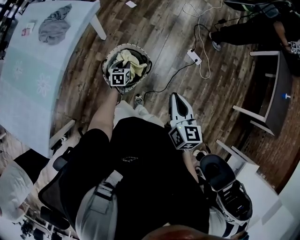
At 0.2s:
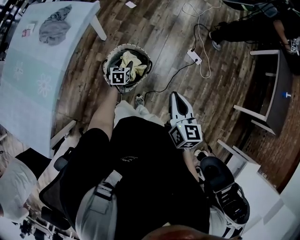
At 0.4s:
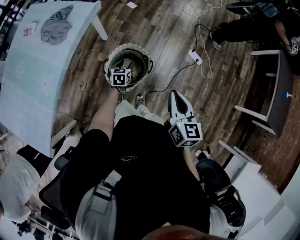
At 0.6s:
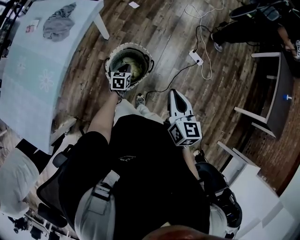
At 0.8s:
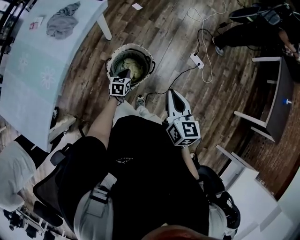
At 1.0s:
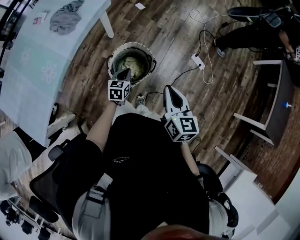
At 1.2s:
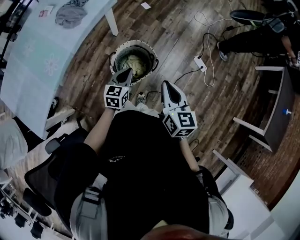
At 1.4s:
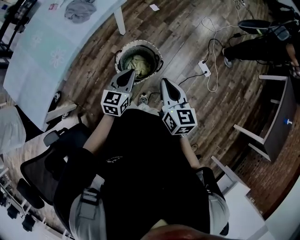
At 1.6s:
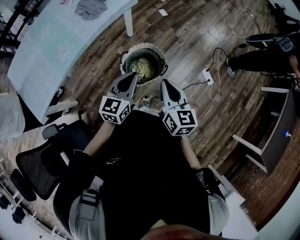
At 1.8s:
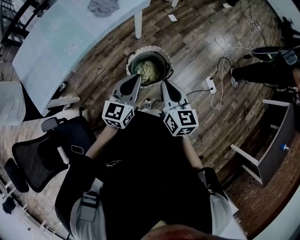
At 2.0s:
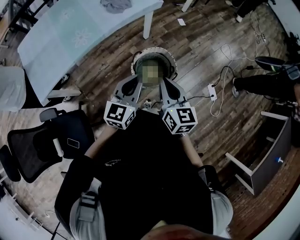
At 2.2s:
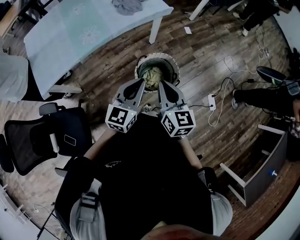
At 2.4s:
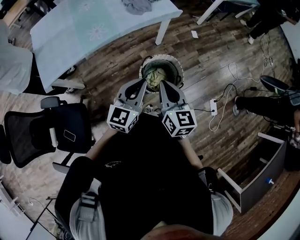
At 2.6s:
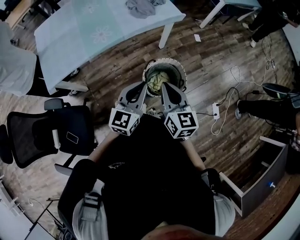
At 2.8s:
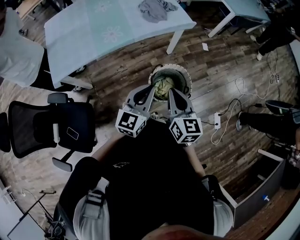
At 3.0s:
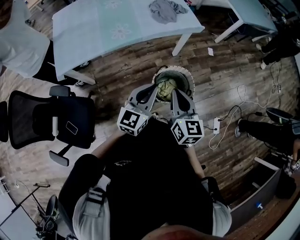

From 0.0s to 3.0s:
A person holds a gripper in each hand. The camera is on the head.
From 0.0s to 1.6s: The left gripper is displaced upward and backward by roughly 35 cm, points its fingers approximately 30 degrees further upward, and opens, then closes again. The right gripper shifts some 10 cm to the left, and rotates about 30 degrees.
From 1.6s to 3.0s: The left gripper is displaced to the left and upward by some 10 cm, and turns by approximately 30 degrees. The right gripper shifts about 15 cm to the left, and turns by approximately 30 degrees.

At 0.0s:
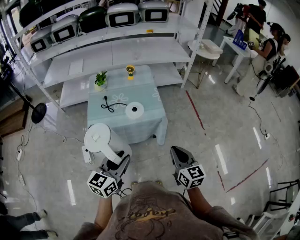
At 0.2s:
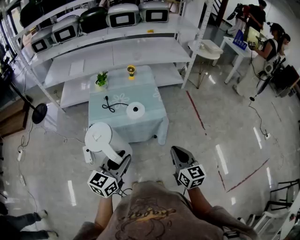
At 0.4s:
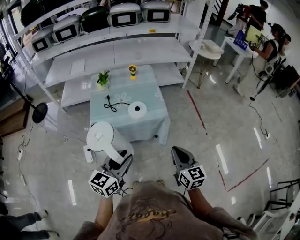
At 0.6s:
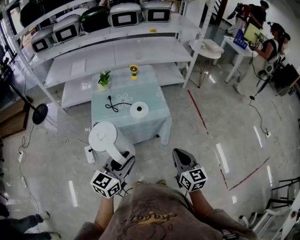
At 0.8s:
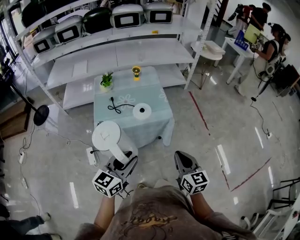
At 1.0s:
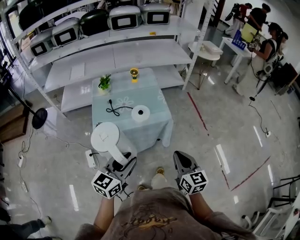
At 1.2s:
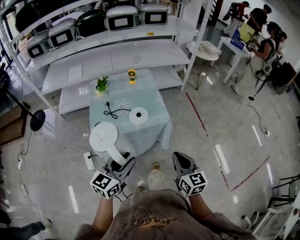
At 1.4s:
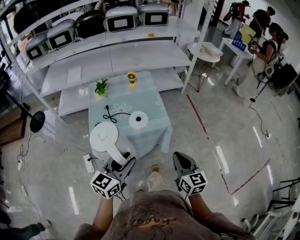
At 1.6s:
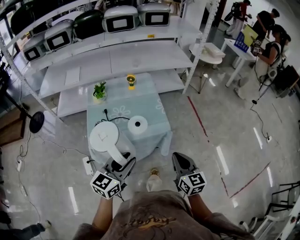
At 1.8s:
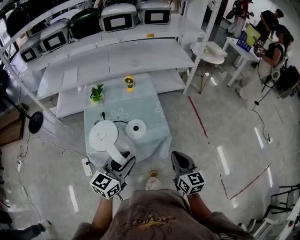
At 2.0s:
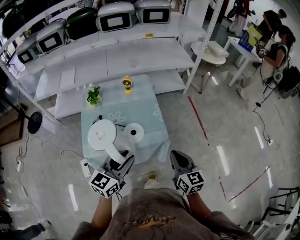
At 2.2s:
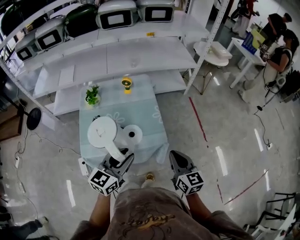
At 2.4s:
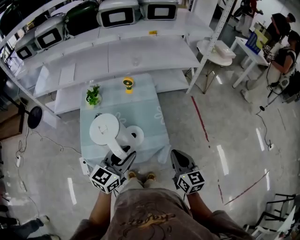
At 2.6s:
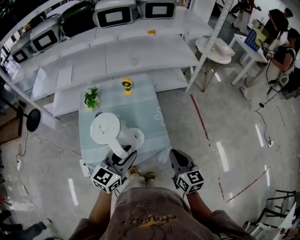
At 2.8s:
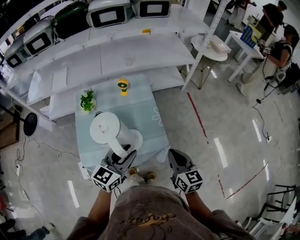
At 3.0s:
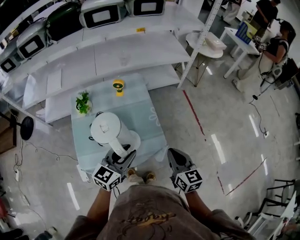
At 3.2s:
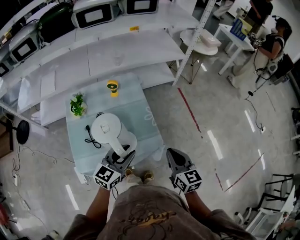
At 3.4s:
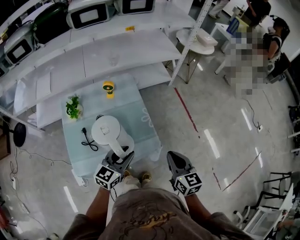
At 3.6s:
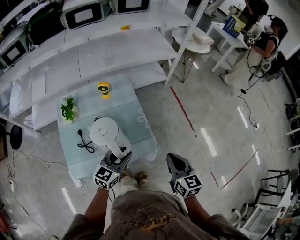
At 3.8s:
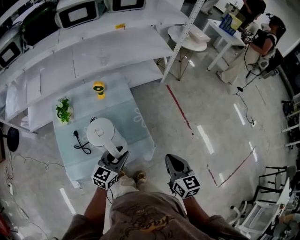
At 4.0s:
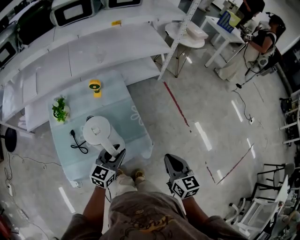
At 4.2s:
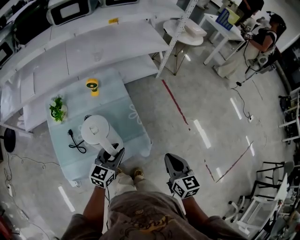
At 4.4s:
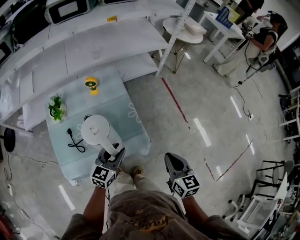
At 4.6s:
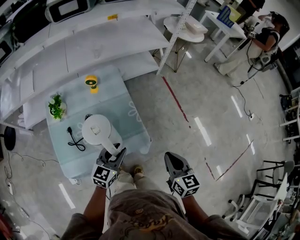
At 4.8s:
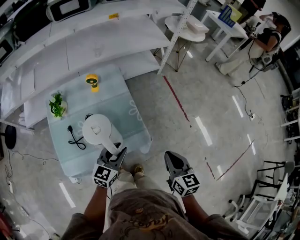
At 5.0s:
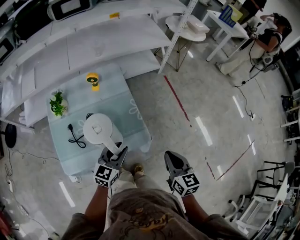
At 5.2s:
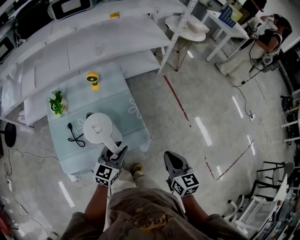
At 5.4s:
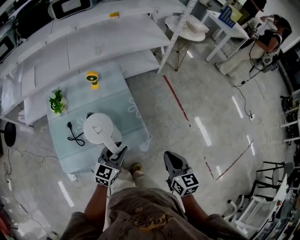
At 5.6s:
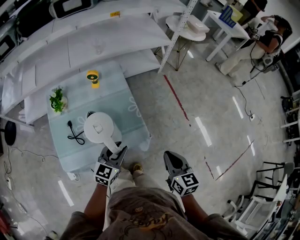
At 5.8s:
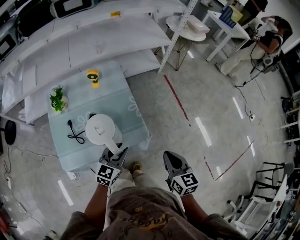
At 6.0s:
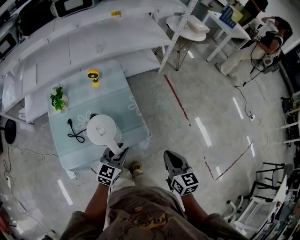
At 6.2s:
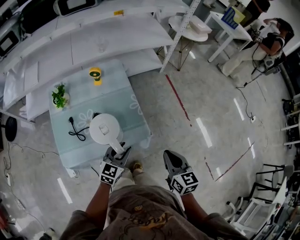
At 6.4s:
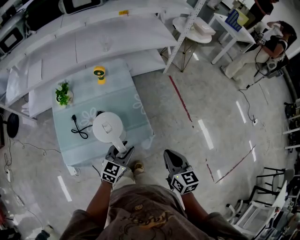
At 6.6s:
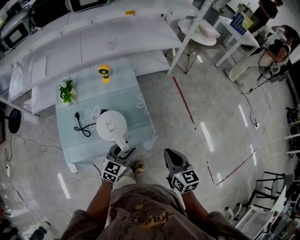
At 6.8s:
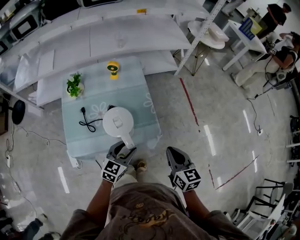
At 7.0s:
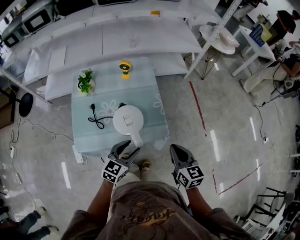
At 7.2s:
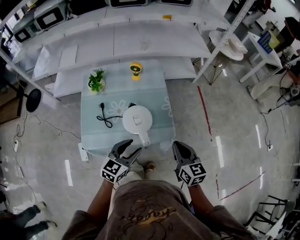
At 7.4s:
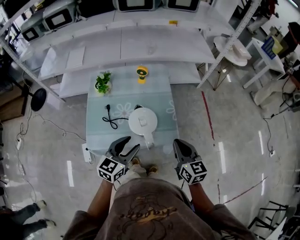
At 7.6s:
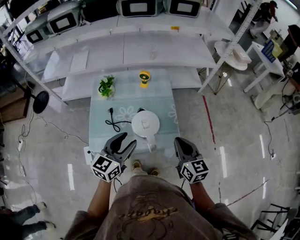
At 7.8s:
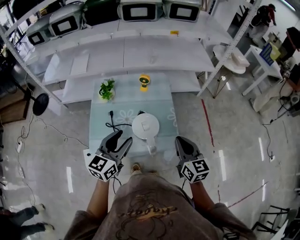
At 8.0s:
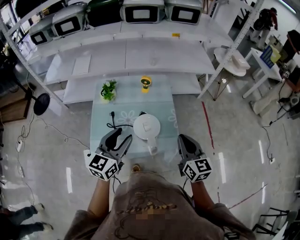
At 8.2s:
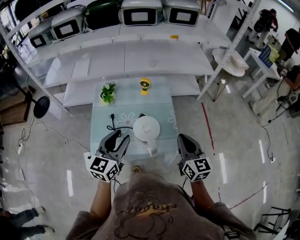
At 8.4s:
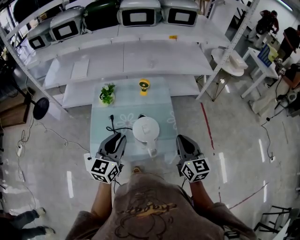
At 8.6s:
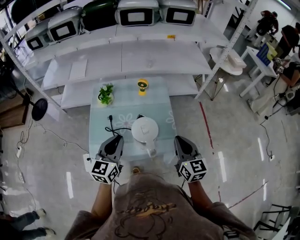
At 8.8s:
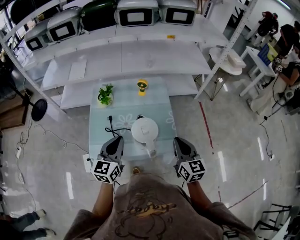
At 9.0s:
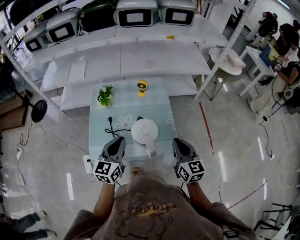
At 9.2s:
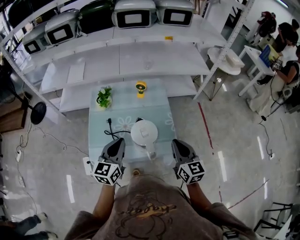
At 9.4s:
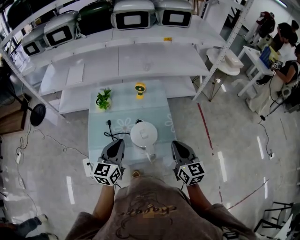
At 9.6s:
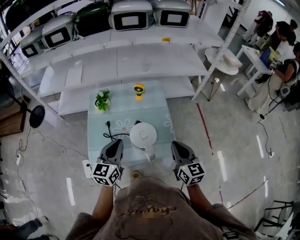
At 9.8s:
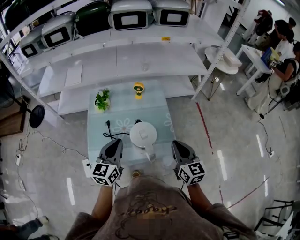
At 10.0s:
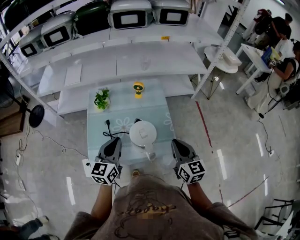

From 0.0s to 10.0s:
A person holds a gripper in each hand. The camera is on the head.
From 0.0s to 1.4s: The right gripper moves roughly 5 cm, while the left gripper travels forward by roughly 5 cm.
From 1.4s to 2.8s: The two grippers go approximately 25 cm forward.
From 2.8s to 4.2s: The left gripper is displaced downward and forward by roughly 15 cm; the right gripper shifts roughly 5 cm to the right.
From 4.2s to 5.8s: The left gripper ends up roughly 5 cm from where it was.
From 5.8s to 7.2s: The two grippers go roughly 10 cm to the left.
From 7.2s to 8.6s: The left gripper is displaced upward and to the left by roughly 15 cm, turns by some 30 degrees, and closes up. The right gripper travels upward by roughly 10 cm.
From 8.6s to 10.0s: There are only small adjustments of the grippers.

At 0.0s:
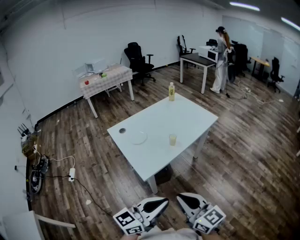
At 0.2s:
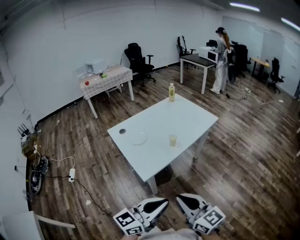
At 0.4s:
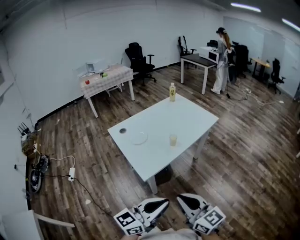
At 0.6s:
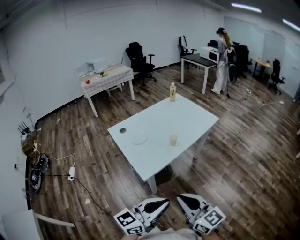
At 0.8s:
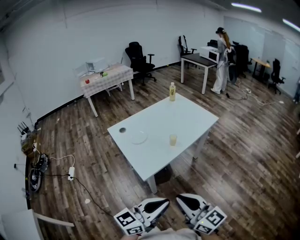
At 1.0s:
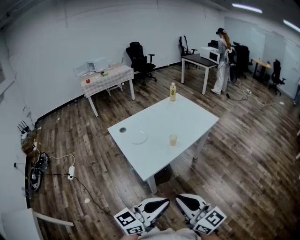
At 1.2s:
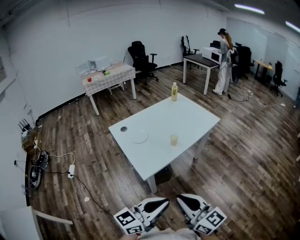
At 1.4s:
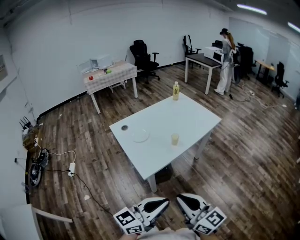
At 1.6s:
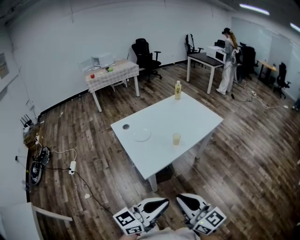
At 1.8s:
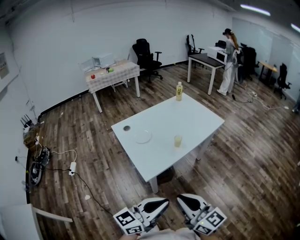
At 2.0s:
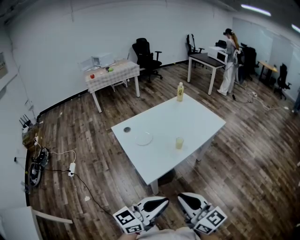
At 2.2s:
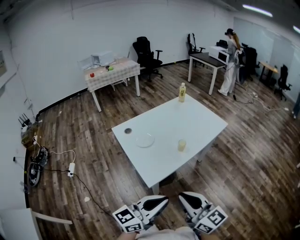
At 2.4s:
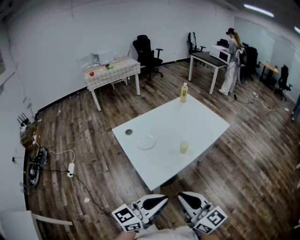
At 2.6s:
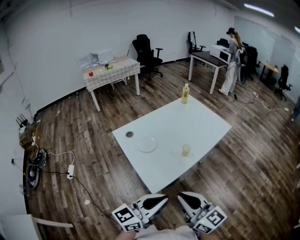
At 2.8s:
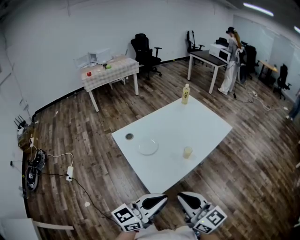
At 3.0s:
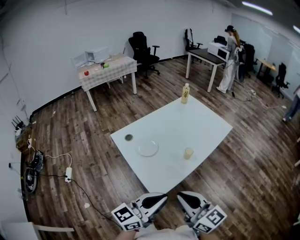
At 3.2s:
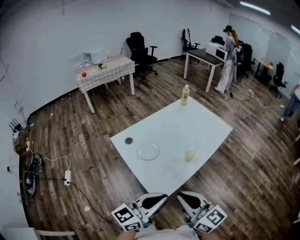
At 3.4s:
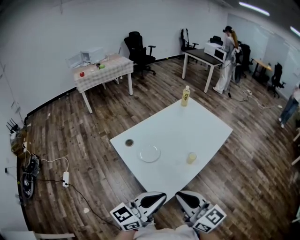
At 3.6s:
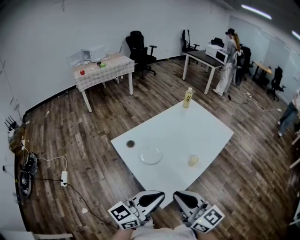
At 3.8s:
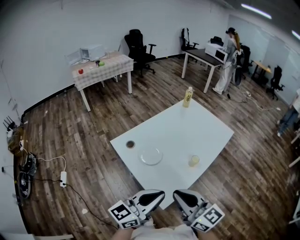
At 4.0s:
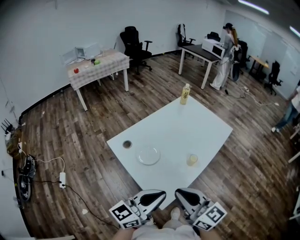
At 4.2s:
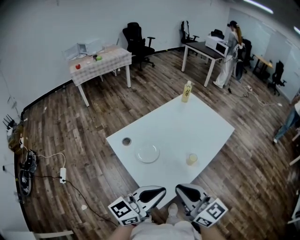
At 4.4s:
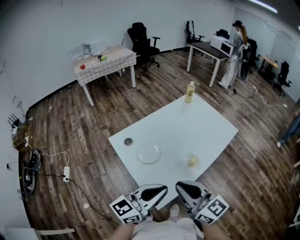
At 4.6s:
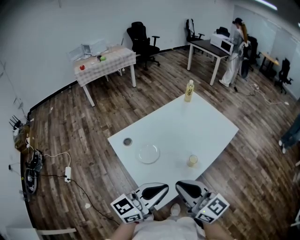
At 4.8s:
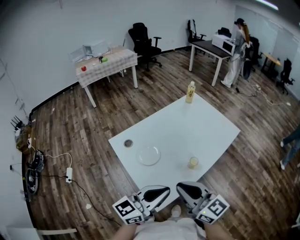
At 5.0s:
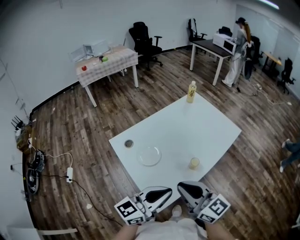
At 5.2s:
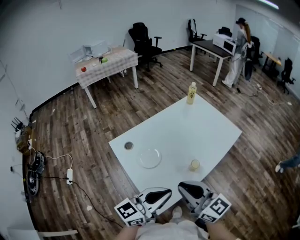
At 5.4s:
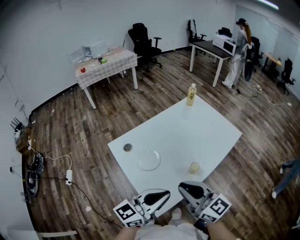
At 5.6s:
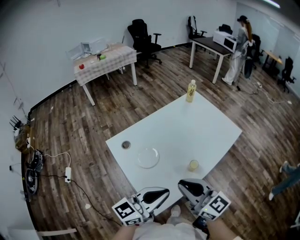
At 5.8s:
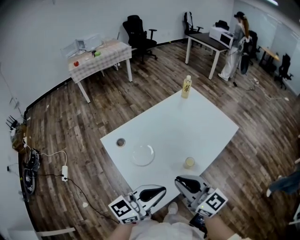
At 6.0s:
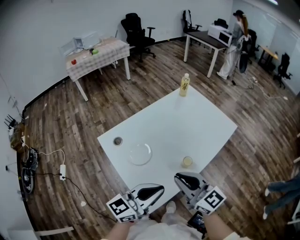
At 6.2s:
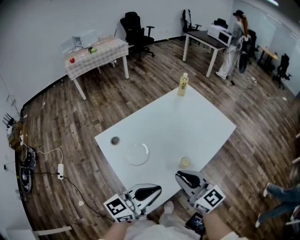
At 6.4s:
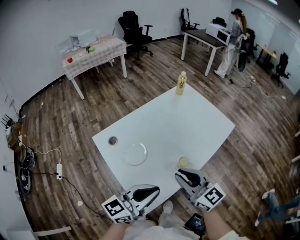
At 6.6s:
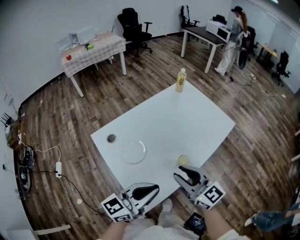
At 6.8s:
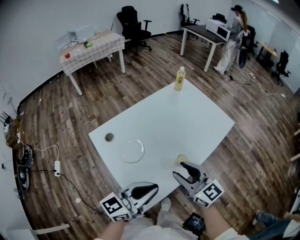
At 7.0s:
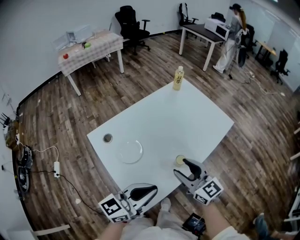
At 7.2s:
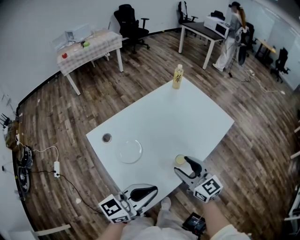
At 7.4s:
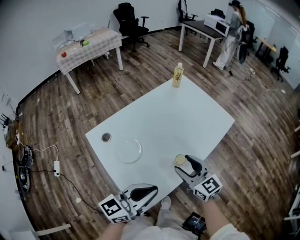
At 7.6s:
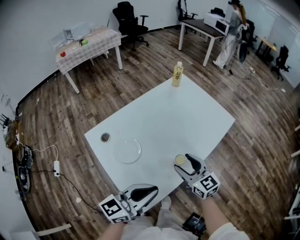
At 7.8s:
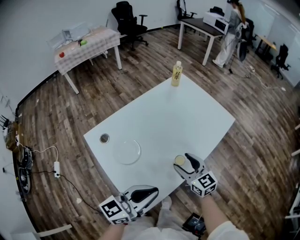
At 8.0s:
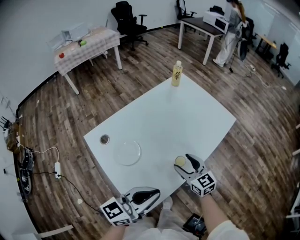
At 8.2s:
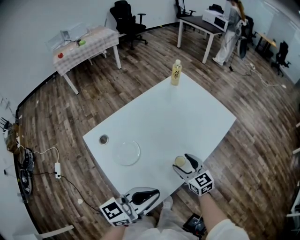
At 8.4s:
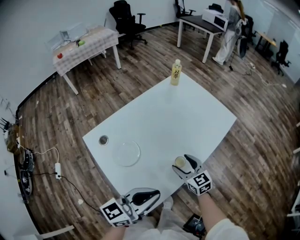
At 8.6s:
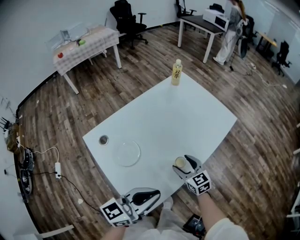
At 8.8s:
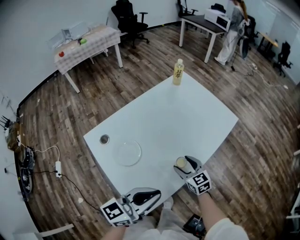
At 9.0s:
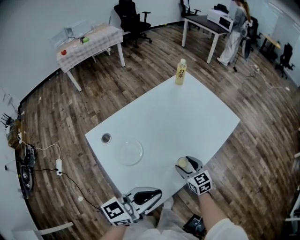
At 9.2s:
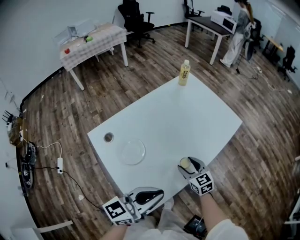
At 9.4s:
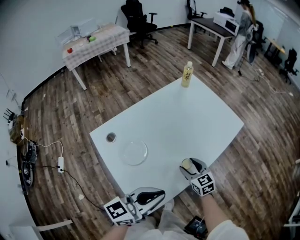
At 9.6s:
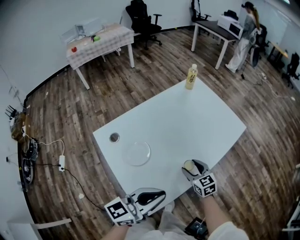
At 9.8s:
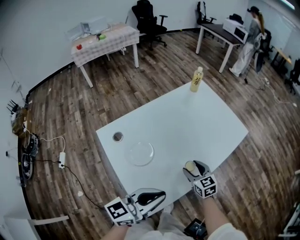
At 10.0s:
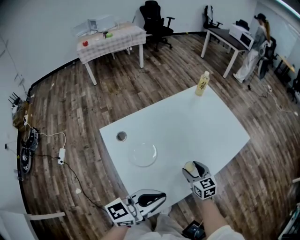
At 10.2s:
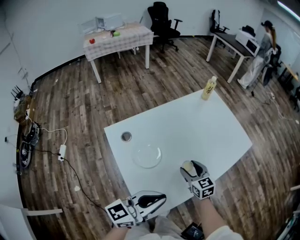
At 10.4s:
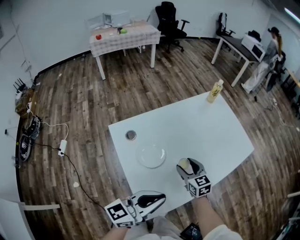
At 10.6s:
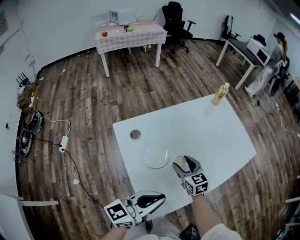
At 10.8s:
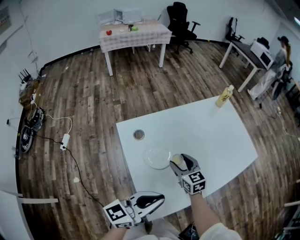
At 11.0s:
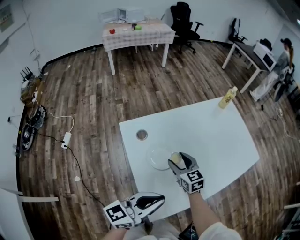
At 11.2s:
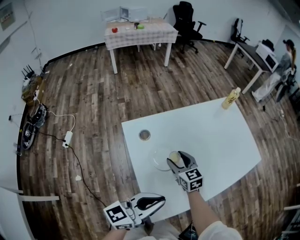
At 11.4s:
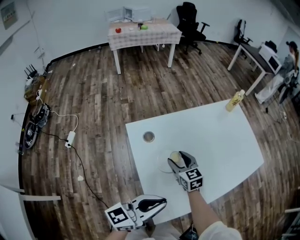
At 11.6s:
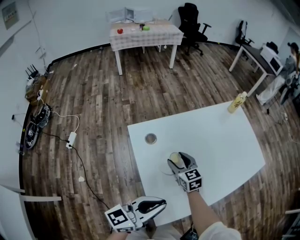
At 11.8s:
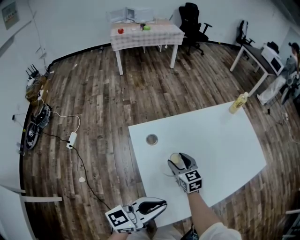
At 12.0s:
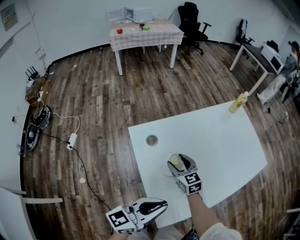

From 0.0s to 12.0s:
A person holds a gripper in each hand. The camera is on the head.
From 0.0s to 1.6s: The grippers make only small movements.
From 1.6s to 3.0s: The grippers both shift forward and to the left by roughly 20 cm.
From 3.0s to 4.4s: The two grippers go about 10 cm forward.
From 4.4s to 6.0s: The right gripper goes roughly 10 cm forward; the left gripper ends up about 5 cm from where it was.
From 6.0s to 7.6s: The right gripper shifts about 15 cm downward, forward and to the right, and opens its fingers.
From 7.6s to 9.0s: The right gripper travels downward by approximately 10 cm.
From 9.0s to 10.4s: The left gripper heads to the left, covering approximately 5 cm, while the right gripper is displaced to the left by roughly 10 cm.
From 10.4s to 12.0s: The left gripper shifts approximately 10 cm to the left, while the right gripper travels to the left by about 15 cm.
